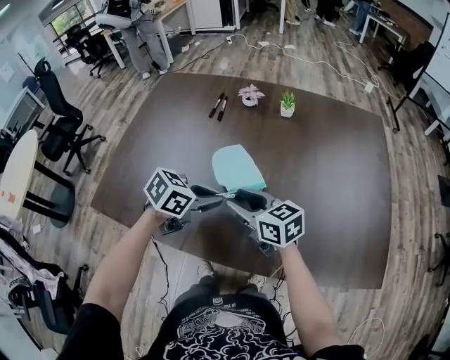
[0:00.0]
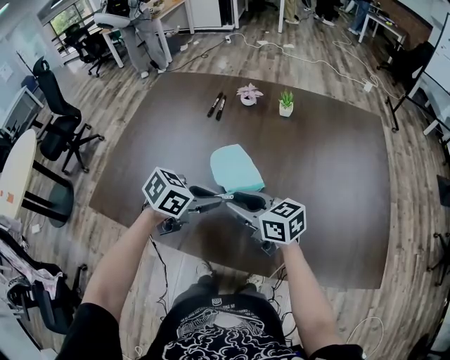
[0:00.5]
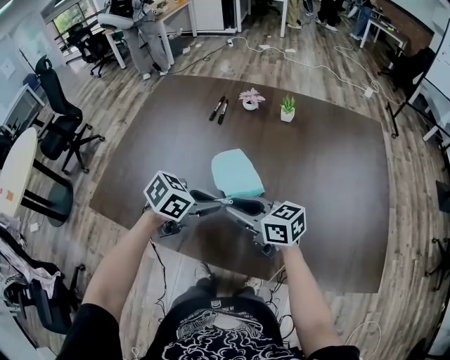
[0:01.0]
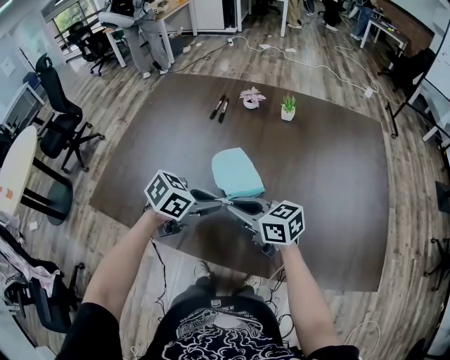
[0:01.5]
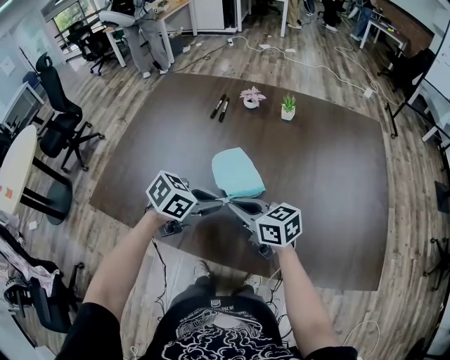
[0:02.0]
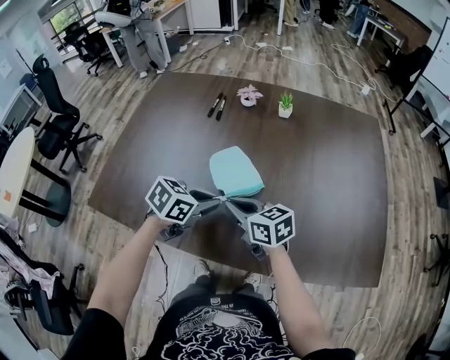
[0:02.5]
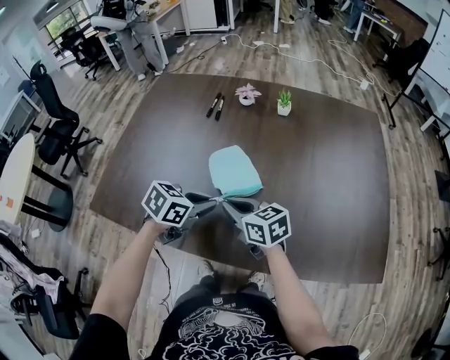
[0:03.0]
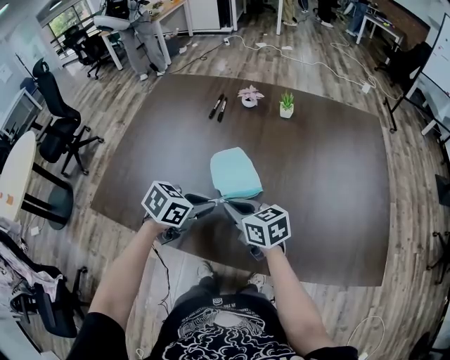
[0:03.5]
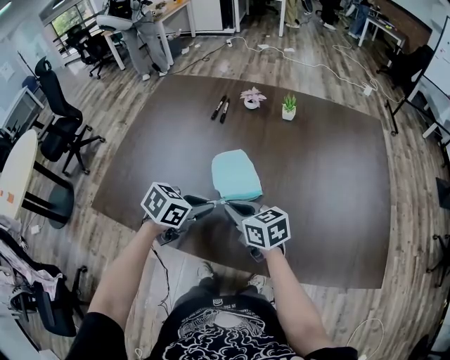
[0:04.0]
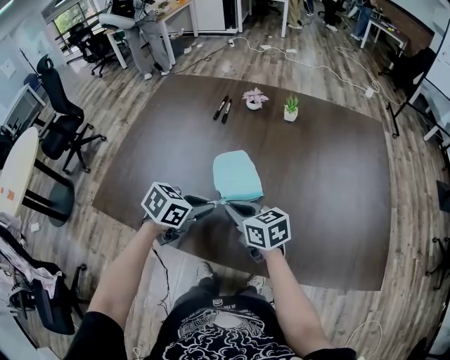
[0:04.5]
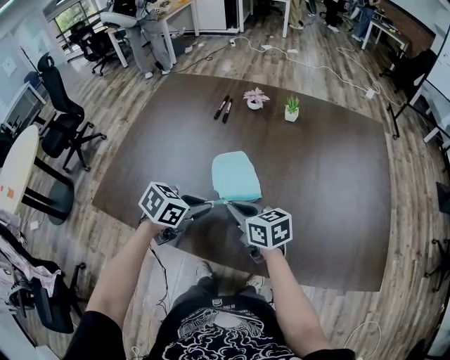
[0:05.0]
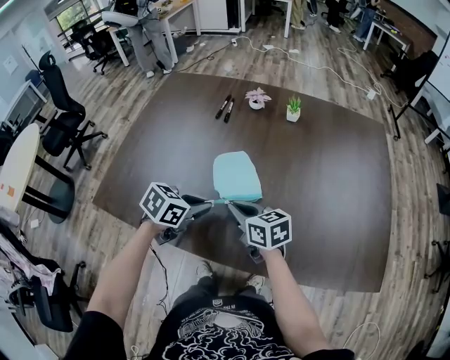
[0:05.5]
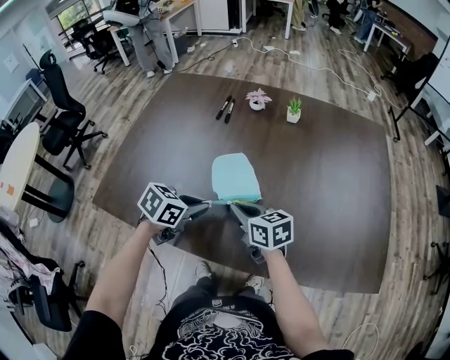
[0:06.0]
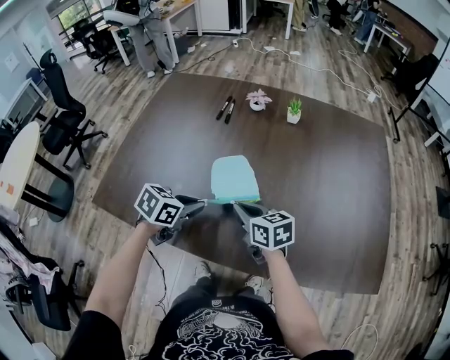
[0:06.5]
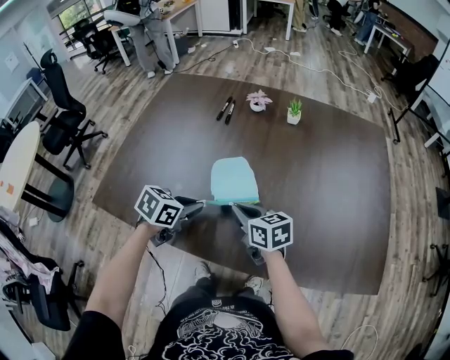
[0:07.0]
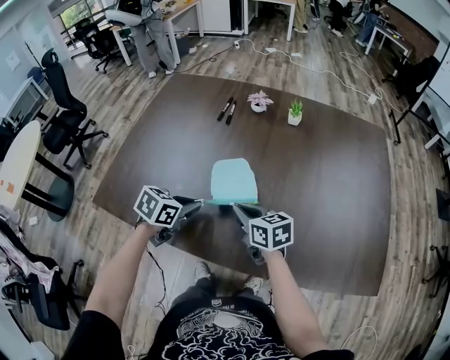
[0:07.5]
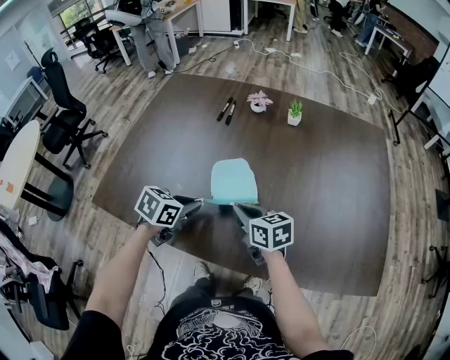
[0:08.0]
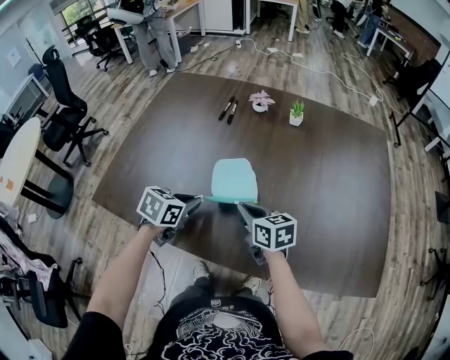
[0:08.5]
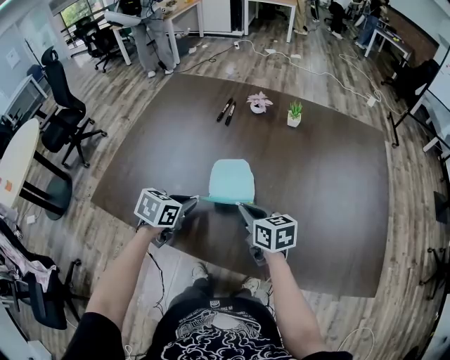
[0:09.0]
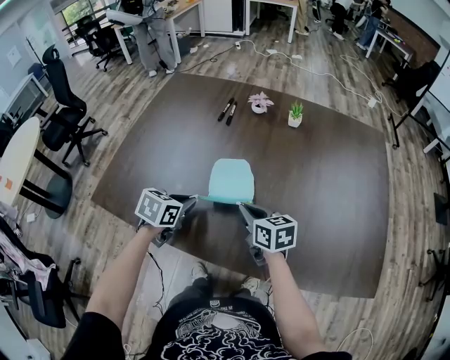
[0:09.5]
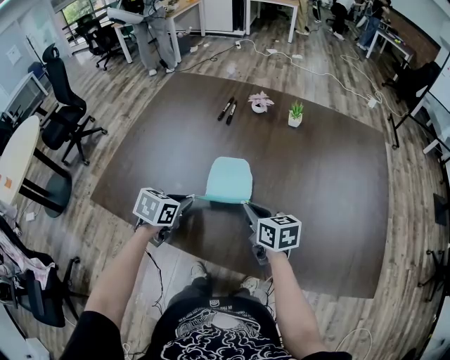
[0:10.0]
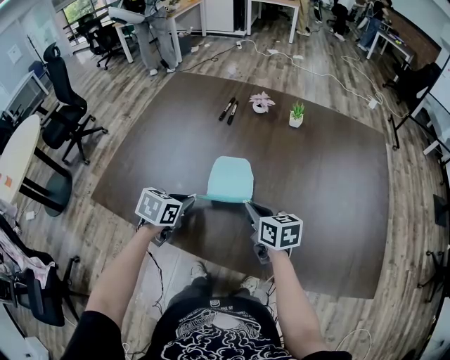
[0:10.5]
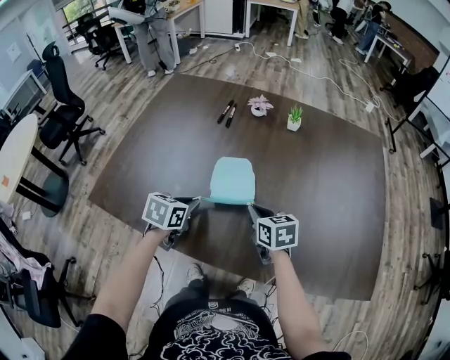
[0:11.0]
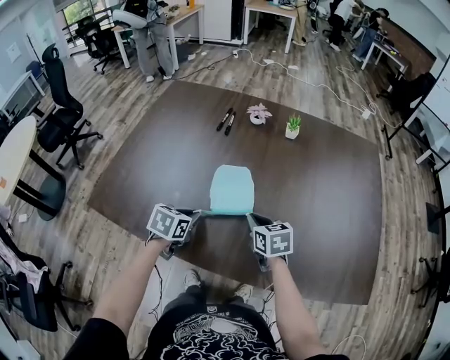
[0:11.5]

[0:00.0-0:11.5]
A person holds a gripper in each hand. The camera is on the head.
0:00.0 to 0:02.0: The right gripper closes up.
0:02.0 to 0:04.0: The grippers stay close to where they were, moving slightly.
0:04.0 to 0:07.5: The grippers move only a little.
0:07.5 to 0:09.5: The grippers move only a little.
0:09.5 to 0:11.5: There are only small adjustments of the grippers.

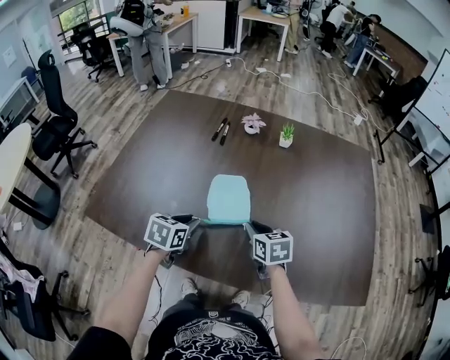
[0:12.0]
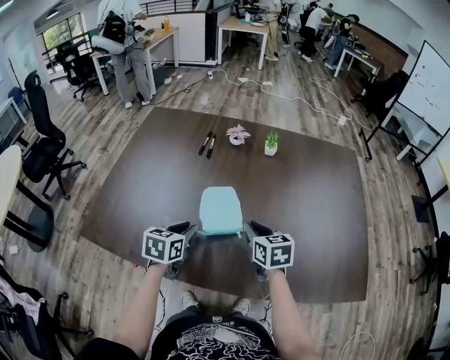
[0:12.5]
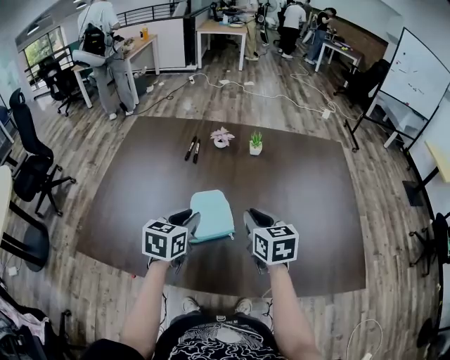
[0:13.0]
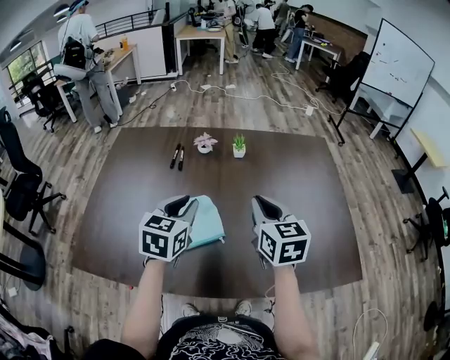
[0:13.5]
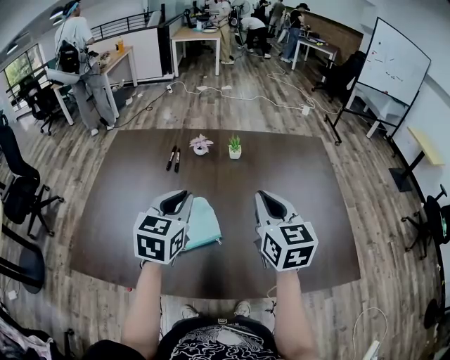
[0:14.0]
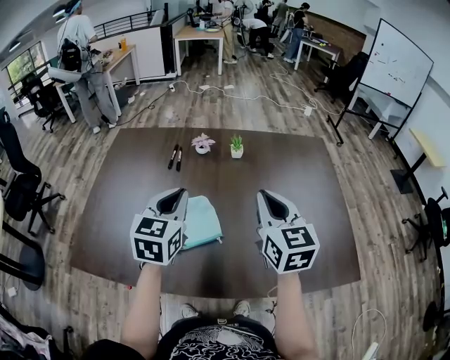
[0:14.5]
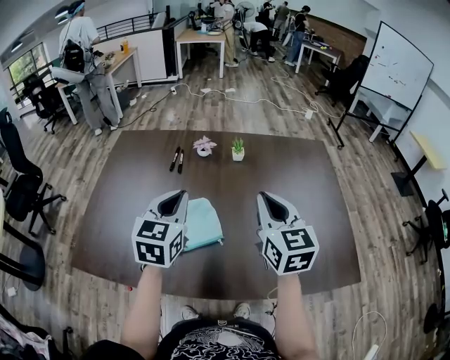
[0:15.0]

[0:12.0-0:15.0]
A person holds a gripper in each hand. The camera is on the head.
0:12.0 to 0:13.5: The right gripper heads upward and to the right, covering about 20 cm, and swivels about 30 degrees; the left gripper travels upward, to the right and forward by approximately 20 cm, and rotates about 30 degrees.
0:13.5 to 0:15.0: The two grippers go approximately 5 cm upward.

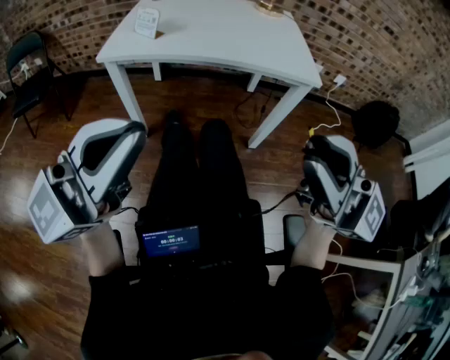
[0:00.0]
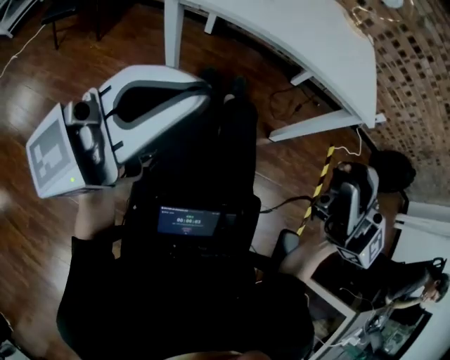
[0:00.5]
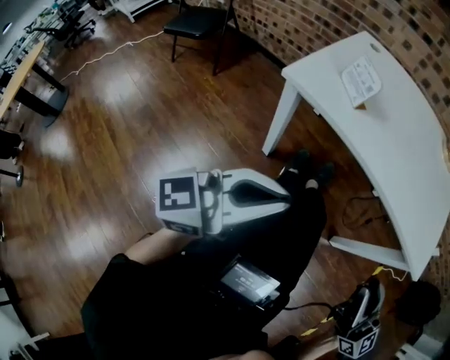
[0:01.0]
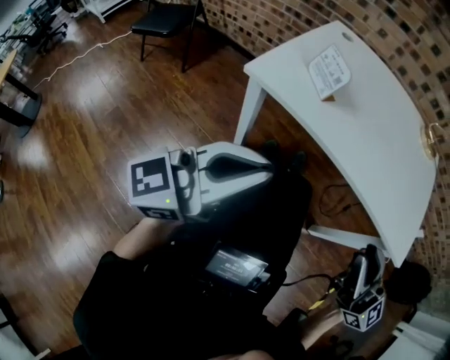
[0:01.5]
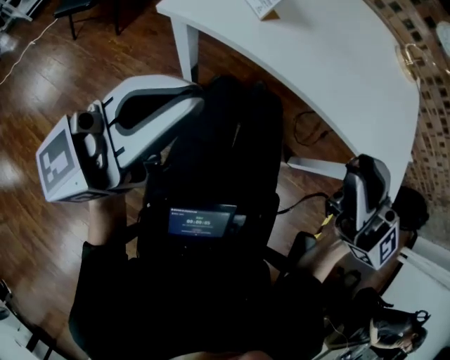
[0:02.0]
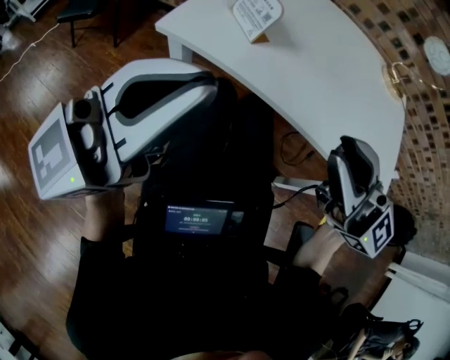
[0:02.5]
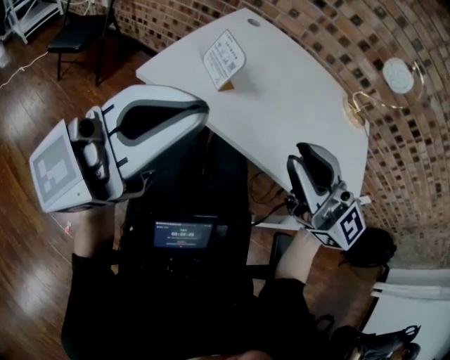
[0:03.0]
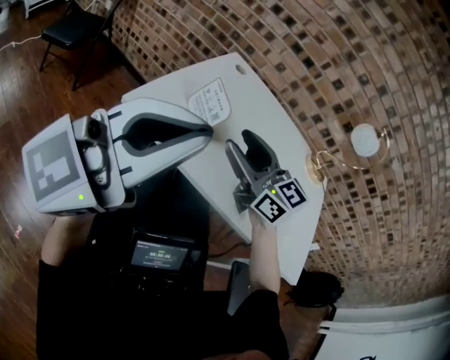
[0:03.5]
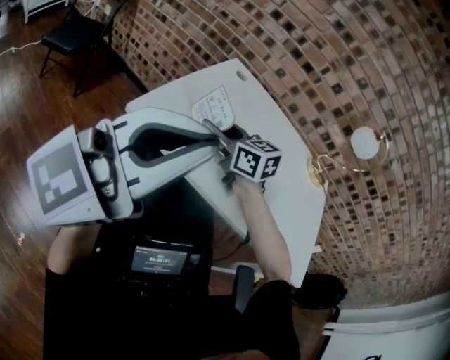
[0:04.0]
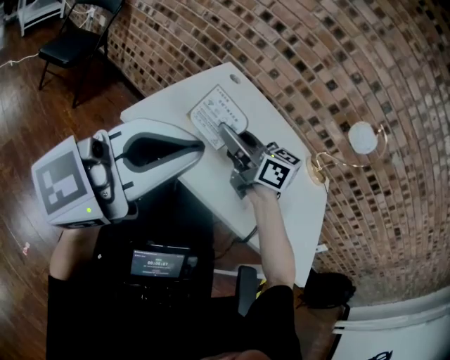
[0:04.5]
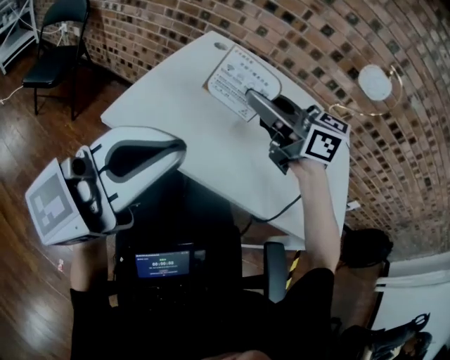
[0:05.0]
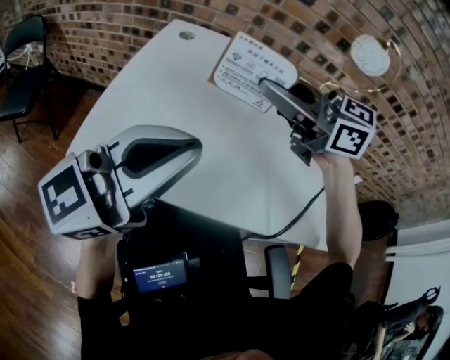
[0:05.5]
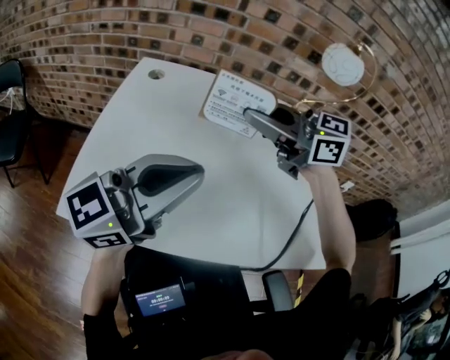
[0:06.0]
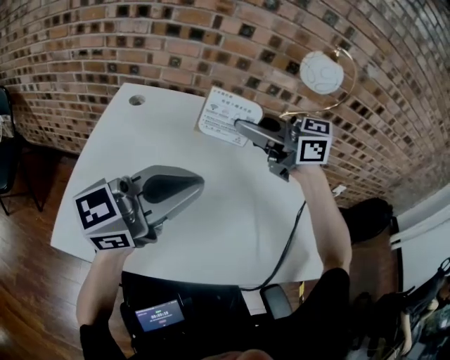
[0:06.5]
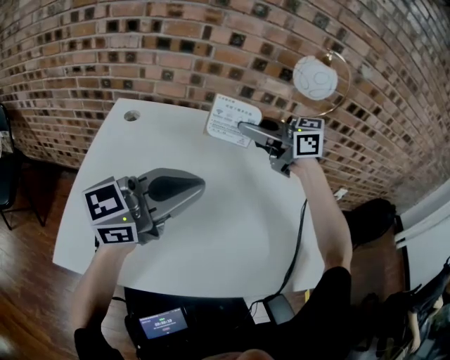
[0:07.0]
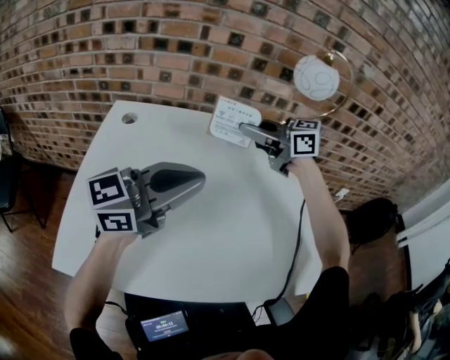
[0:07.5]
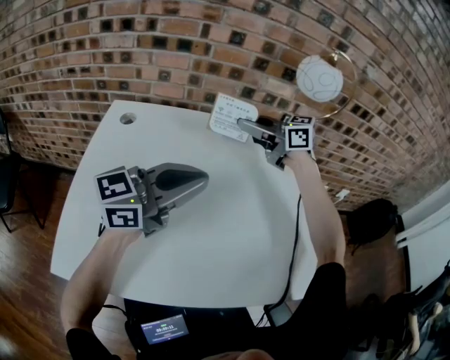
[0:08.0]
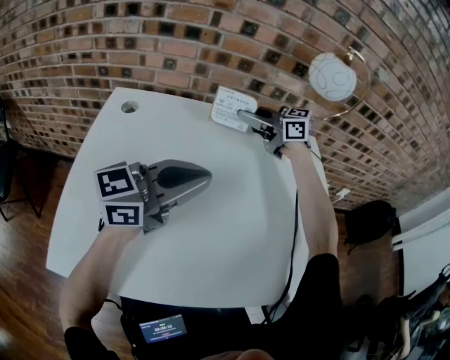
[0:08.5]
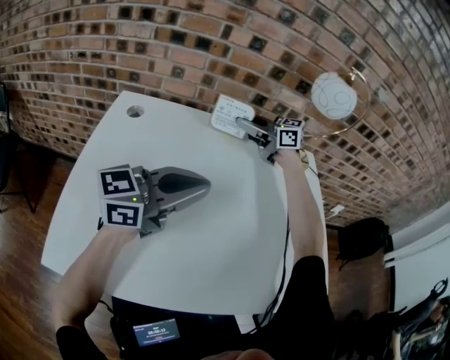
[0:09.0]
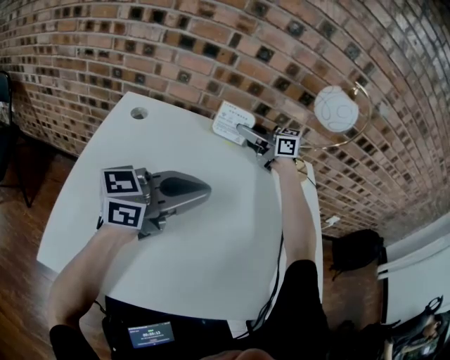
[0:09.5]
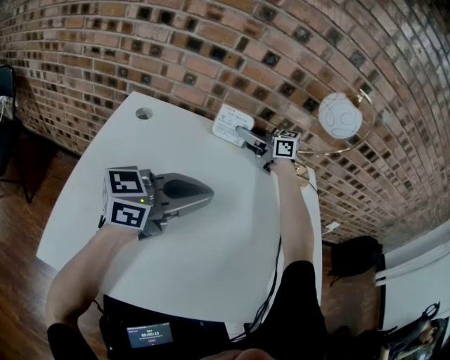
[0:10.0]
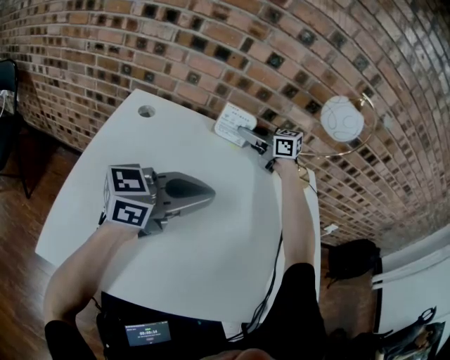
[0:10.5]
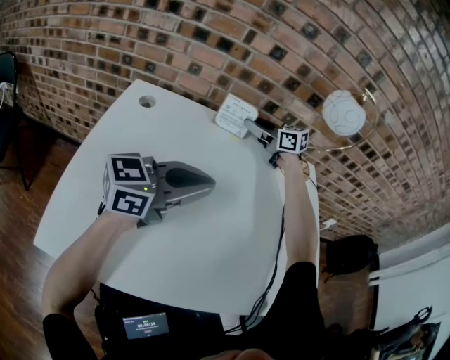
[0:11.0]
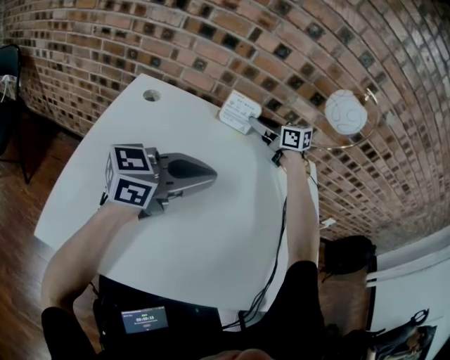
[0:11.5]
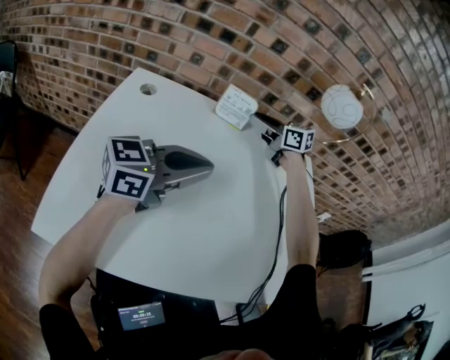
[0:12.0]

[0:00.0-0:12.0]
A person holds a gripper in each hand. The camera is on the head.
0:00.0 to 0:02.0: The two grippers go approximately 30 cm forward.
0:02.0 to 0:04.0: The right gripper travels forward and to the left by some 35 cm, and angles its fingers downward, by some 30 degrees; the left gripper goes roughly 10 cm upward and forward, and changes its angle by roughly 20 degrees.
0:04.0 to 0:06.0: The left gripper changes place by some 25 cm, and turns by roughly 30 degrees, while the right gripper shifts by approximately 25 cm, and closes up.
0:06.0 to 0:08.0: The right gripper moves approximately 20 cm; the left gripper changes place by some 15 cm.
0:08.0 to 0:10.0: The right gripper changes place by some 10 cm.
0:10.0 to 0:12.0: The right gripper opens.
